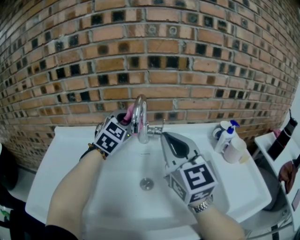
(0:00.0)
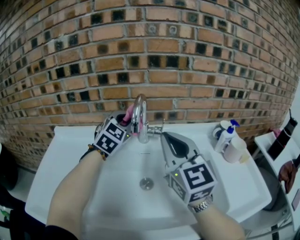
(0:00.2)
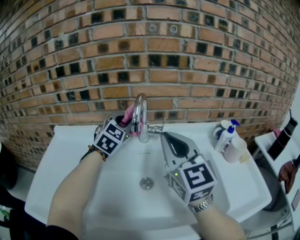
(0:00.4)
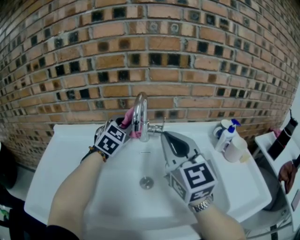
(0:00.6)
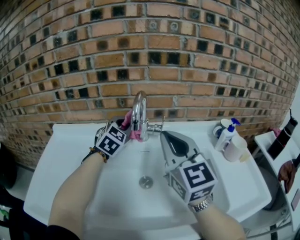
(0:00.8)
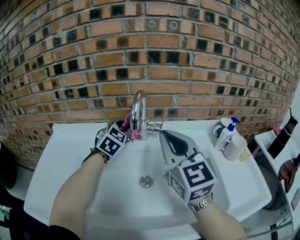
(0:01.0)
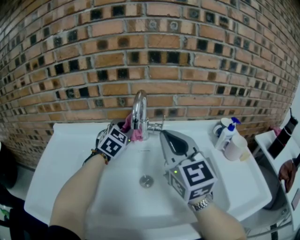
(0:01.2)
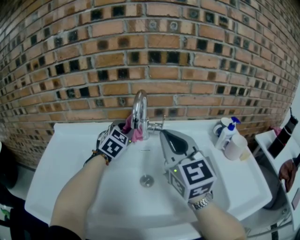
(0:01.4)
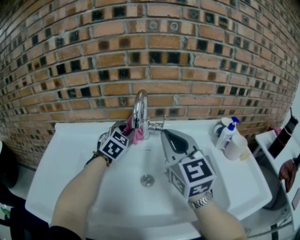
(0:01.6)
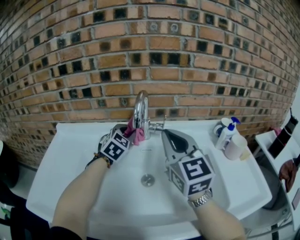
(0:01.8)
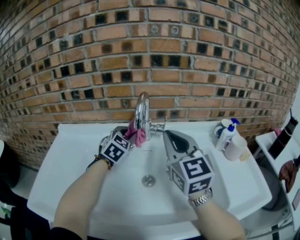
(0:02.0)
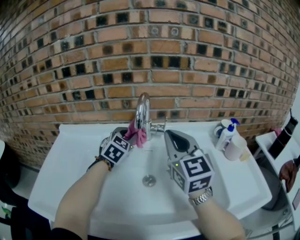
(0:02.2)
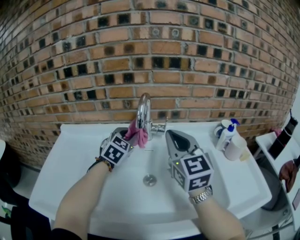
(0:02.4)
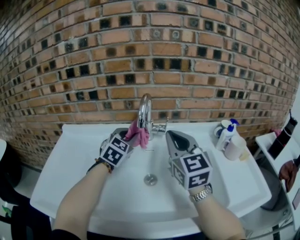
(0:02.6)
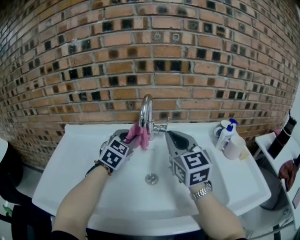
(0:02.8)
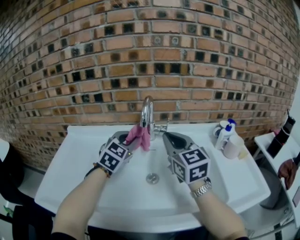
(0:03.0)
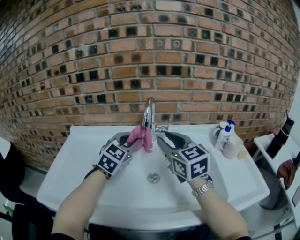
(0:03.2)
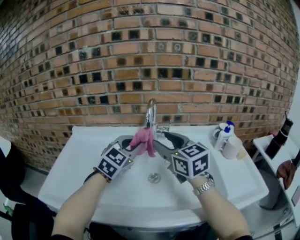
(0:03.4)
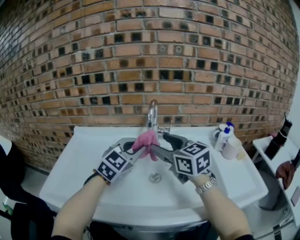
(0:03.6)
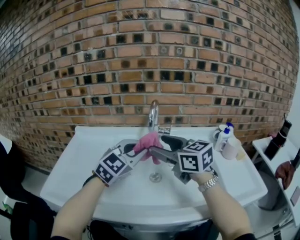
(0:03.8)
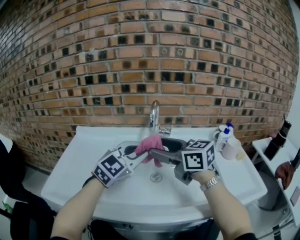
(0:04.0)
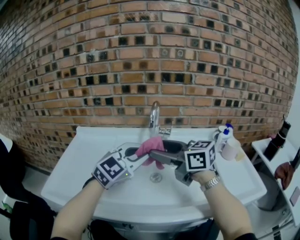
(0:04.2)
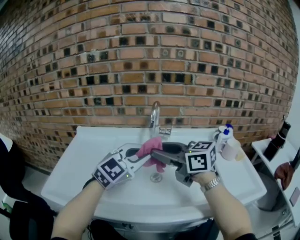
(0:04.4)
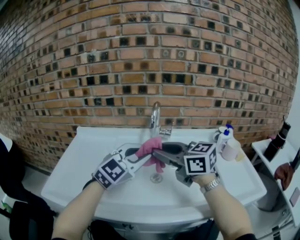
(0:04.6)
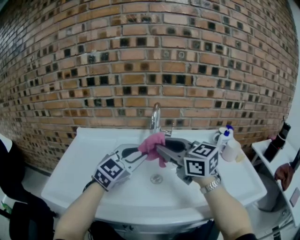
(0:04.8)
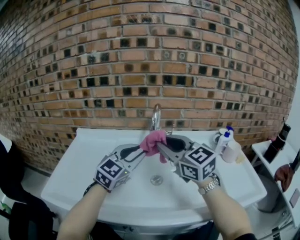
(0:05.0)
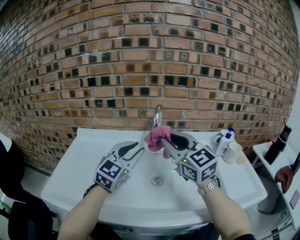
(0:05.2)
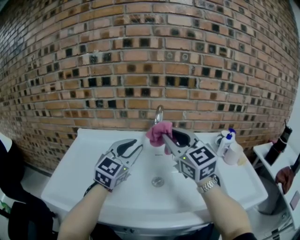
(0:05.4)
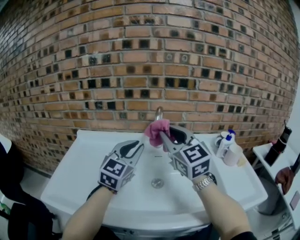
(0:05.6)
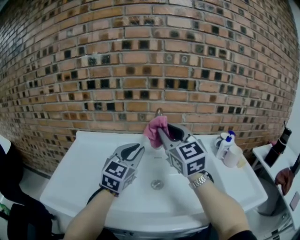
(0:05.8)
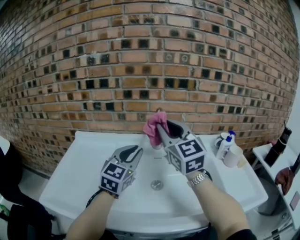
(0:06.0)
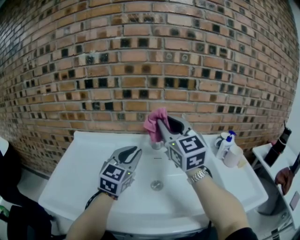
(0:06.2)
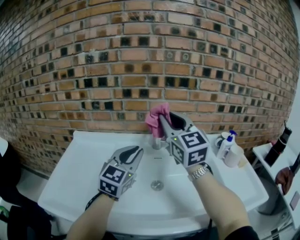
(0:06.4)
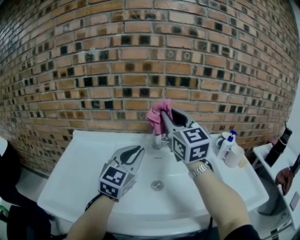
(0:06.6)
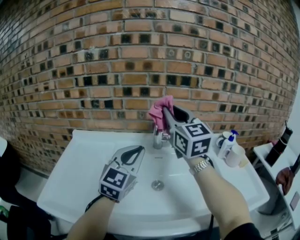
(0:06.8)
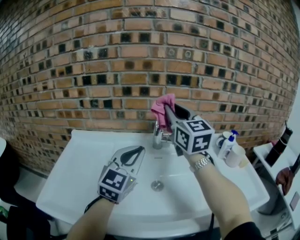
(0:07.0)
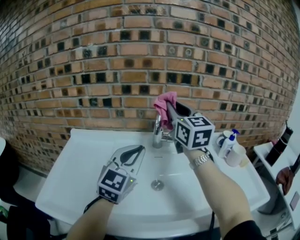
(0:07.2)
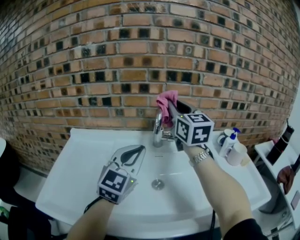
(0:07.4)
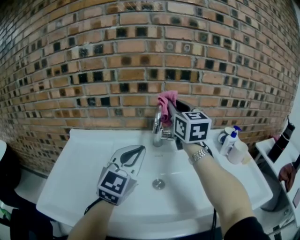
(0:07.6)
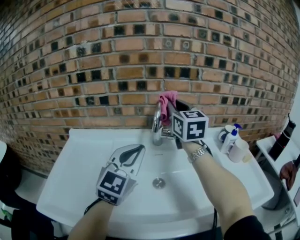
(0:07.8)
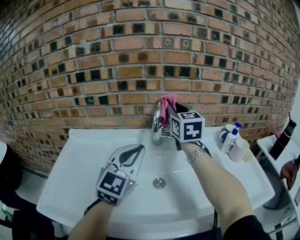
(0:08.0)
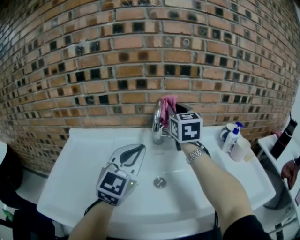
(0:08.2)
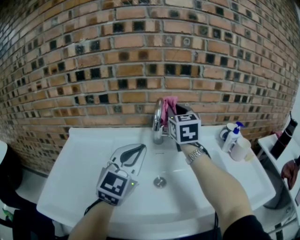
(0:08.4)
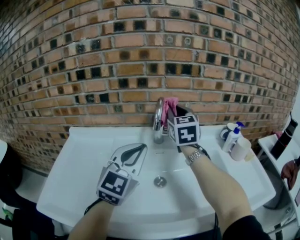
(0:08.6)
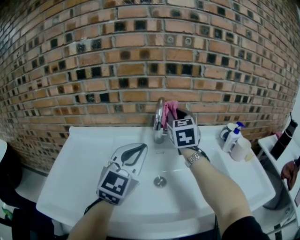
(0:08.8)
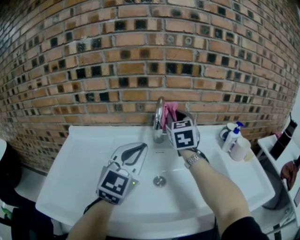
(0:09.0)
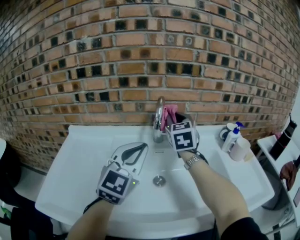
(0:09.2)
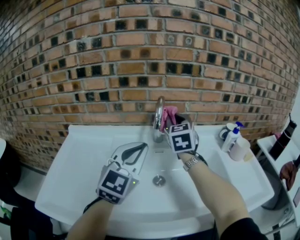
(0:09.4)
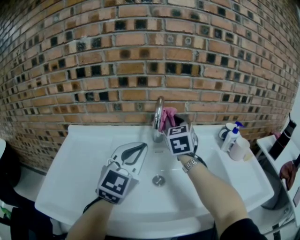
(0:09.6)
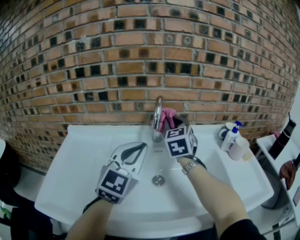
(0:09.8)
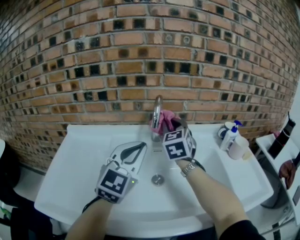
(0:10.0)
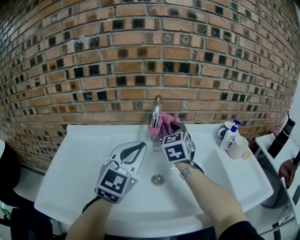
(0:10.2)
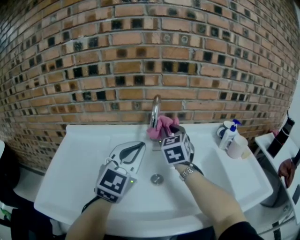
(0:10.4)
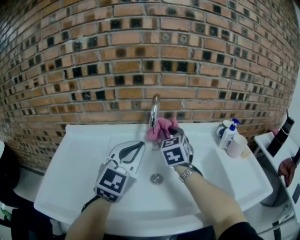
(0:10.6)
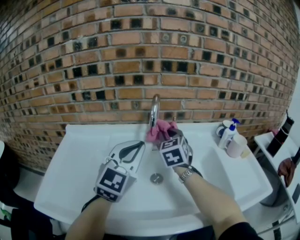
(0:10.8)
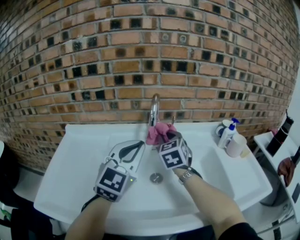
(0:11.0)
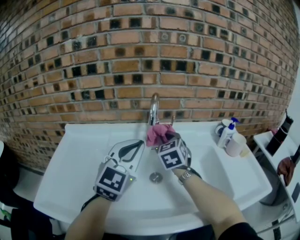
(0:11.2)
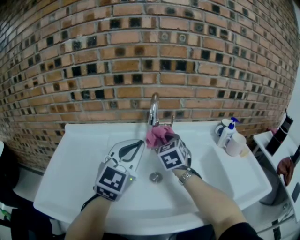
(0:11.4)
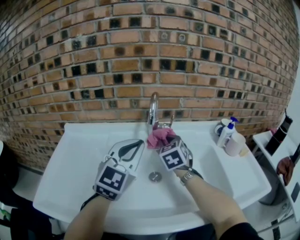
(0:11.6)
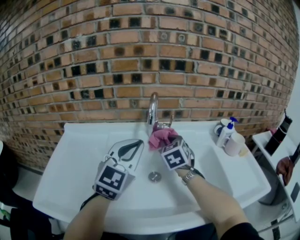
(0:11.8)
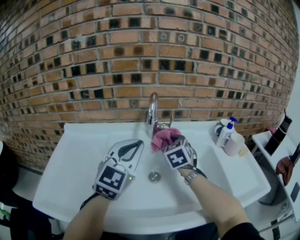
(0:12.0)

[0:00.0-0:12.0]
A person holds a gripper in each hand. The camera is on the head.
0:00.0 to 0:01.6: The left gripper shifts approximately 10 cm downward.
0:01.6 to 0:03.0: The left gripper shifts about 10 cm backward.
0:03.0 to 0:04.4: The right gripper moves backward and to the left, roughly 10 cm, rotates approximately 40 degrees, and opens. The left gripper is displaced backward by approximately 15 cm, and changes its angle by roughly 20 degrees.
0:04.4 to 0:06.0: The left gripper travels forward and to the left by approximately 10 cm, and swivels some 30 degrees. The right gripper is displaced upward and forward by some 10 cm, and rotates approximately 50 degrees.
0:06.0 to 0:07.6: The right gripper goes some 10 cm forward.
0:07.6 to 0:09.0: The right gripper travels downward by some 10 cm.
0:09.0 to 0:10.4: The right gripper heads downward, covering roughly 5 cm.
0:10.4 to 0:12.0: The right gripper goes roughly 5 cm downward.

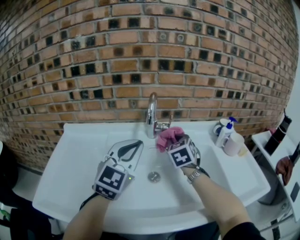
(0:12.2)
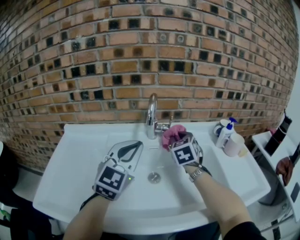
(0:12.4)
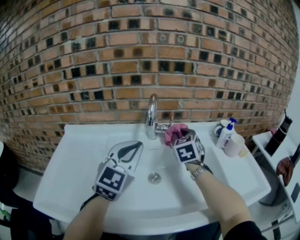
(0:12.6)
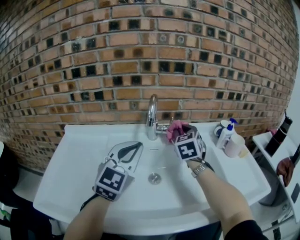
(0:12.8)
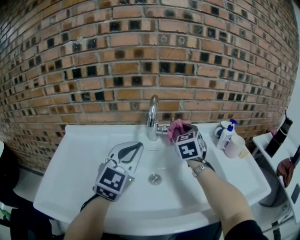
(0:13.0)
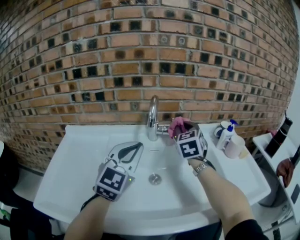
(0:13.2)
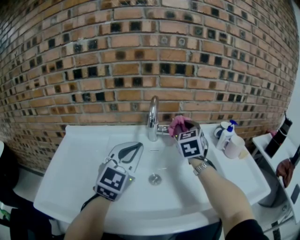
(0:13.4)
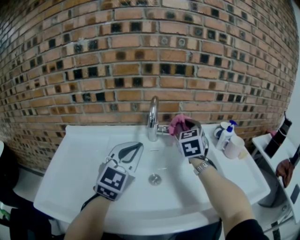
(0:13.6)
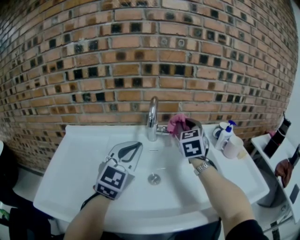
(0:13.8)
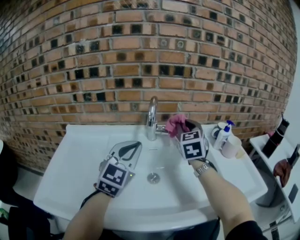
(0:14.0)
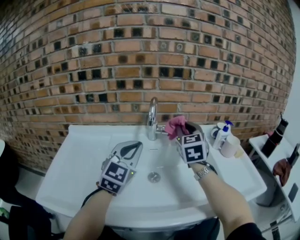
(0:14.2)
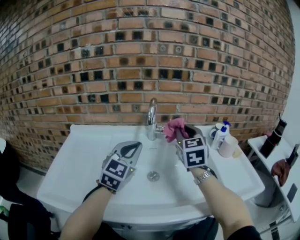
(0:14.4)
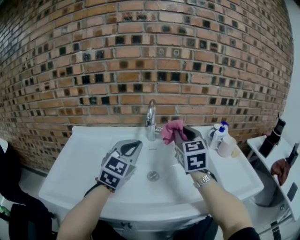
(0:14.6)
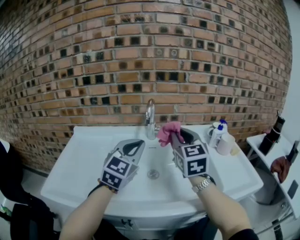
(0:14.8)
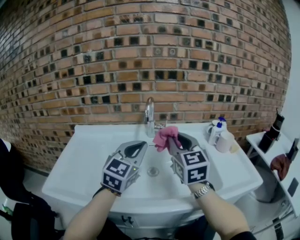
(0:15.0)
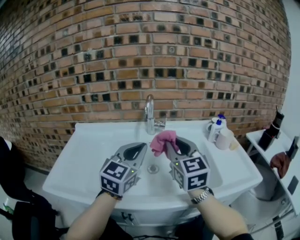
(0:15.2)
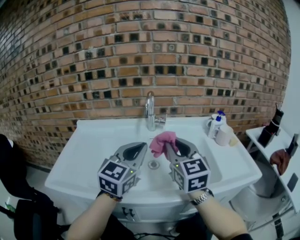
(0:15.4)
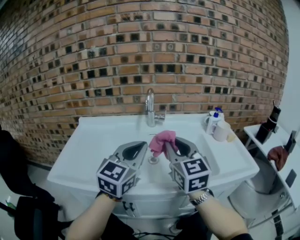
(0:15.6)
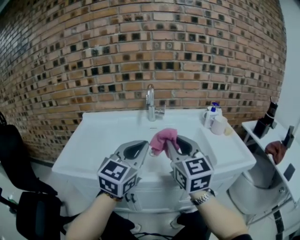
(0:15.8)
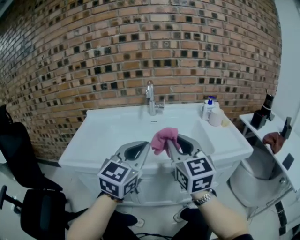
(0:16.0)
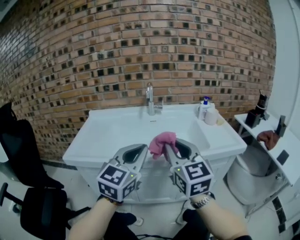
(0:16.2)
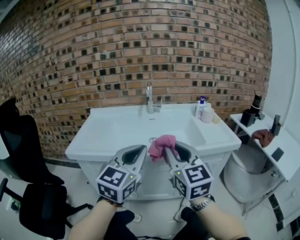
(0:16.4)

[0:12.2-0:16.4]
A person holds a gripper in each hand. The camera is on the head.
0:12.2 to 0:13.6: The right gripper shifts about 10 cm upward.
0:13.6 to 0:15.0: The left gripper changes place by about 5 cm, while the right gripper goes approximately 20 cm backward, and rotates about 20 degrees.
0:15.0 to 0:16.4: The two grippers go some 30 cm backward.

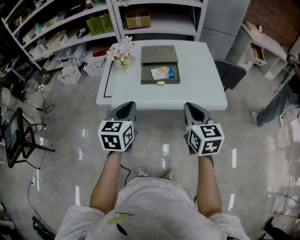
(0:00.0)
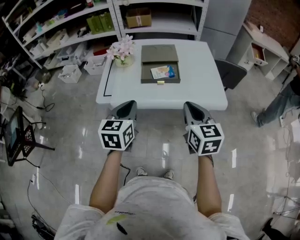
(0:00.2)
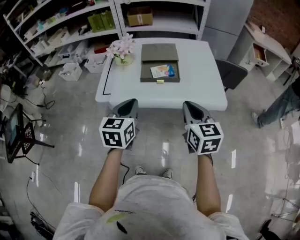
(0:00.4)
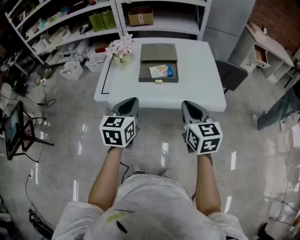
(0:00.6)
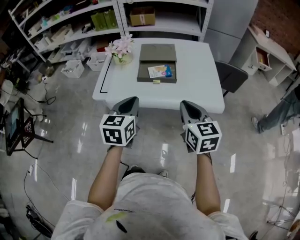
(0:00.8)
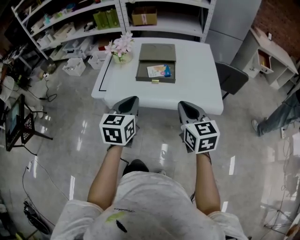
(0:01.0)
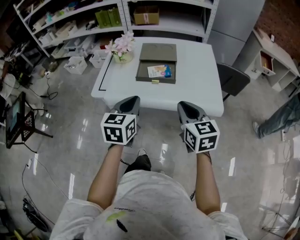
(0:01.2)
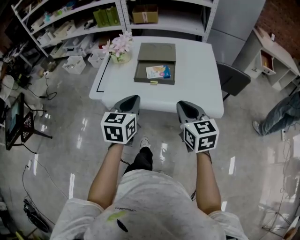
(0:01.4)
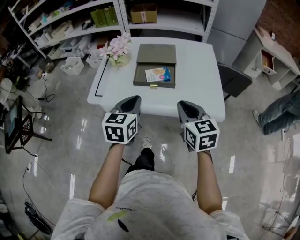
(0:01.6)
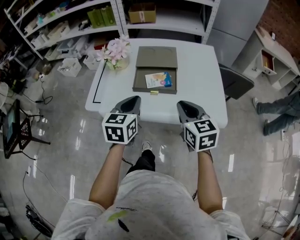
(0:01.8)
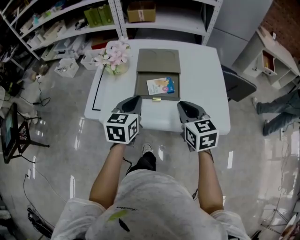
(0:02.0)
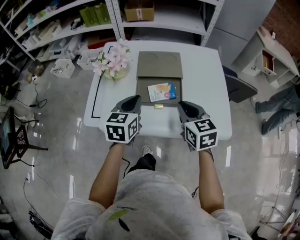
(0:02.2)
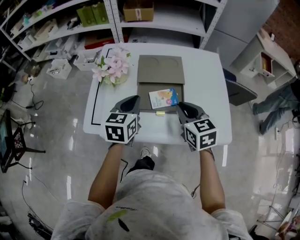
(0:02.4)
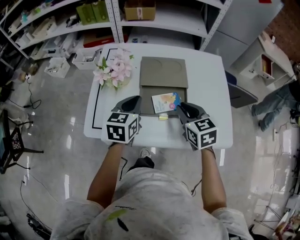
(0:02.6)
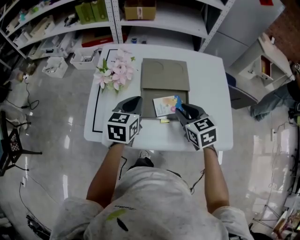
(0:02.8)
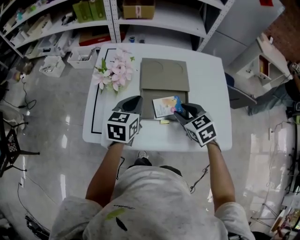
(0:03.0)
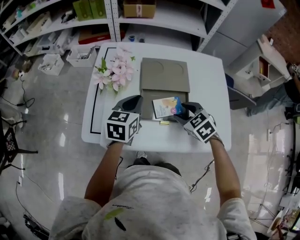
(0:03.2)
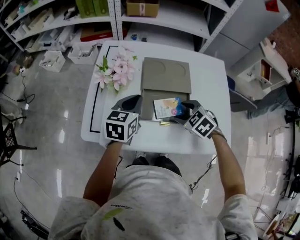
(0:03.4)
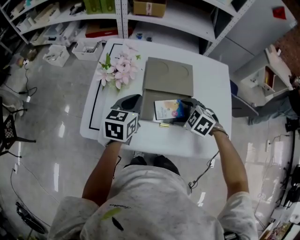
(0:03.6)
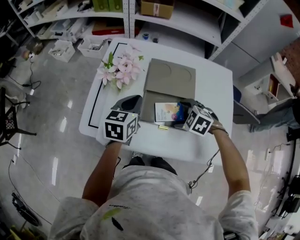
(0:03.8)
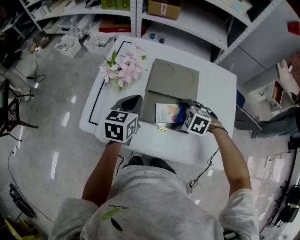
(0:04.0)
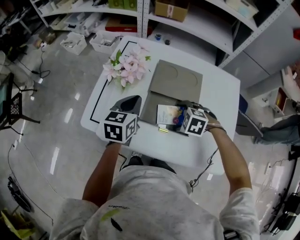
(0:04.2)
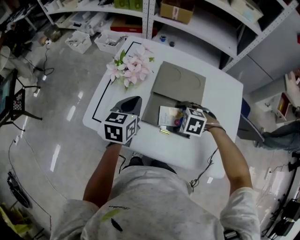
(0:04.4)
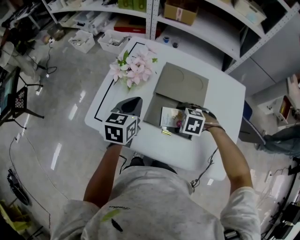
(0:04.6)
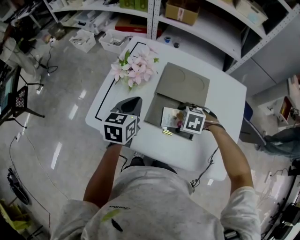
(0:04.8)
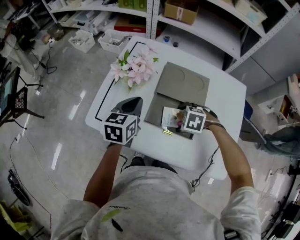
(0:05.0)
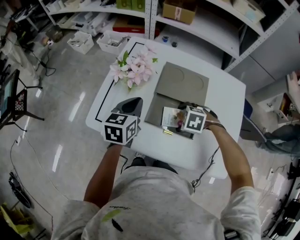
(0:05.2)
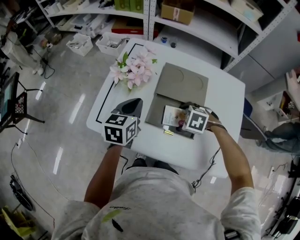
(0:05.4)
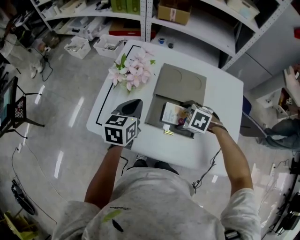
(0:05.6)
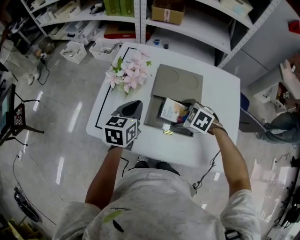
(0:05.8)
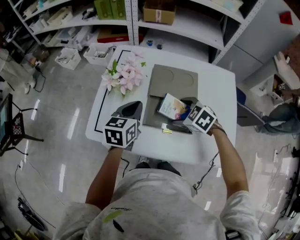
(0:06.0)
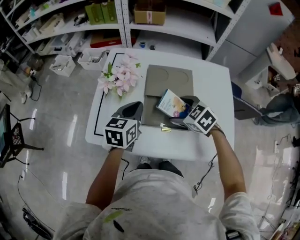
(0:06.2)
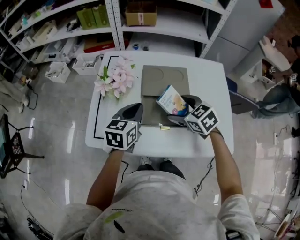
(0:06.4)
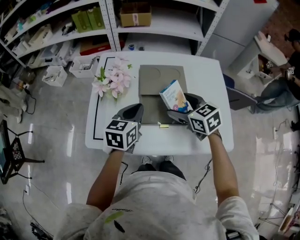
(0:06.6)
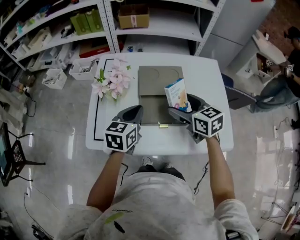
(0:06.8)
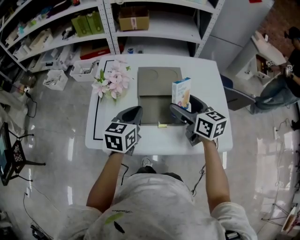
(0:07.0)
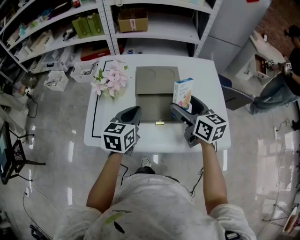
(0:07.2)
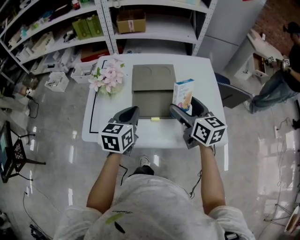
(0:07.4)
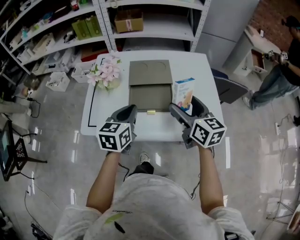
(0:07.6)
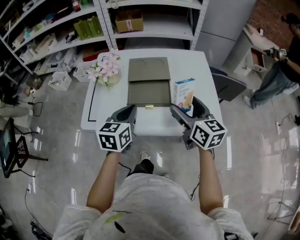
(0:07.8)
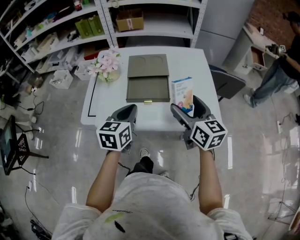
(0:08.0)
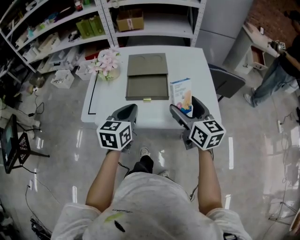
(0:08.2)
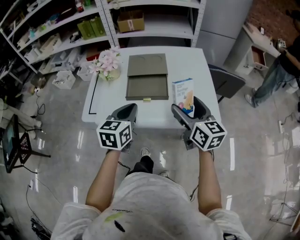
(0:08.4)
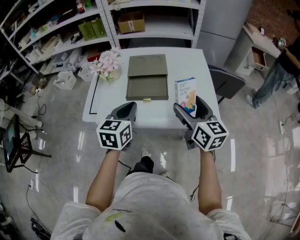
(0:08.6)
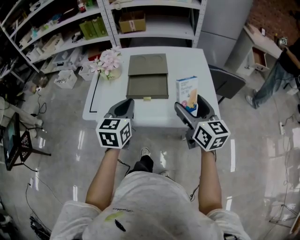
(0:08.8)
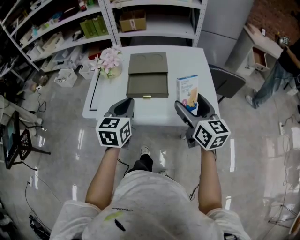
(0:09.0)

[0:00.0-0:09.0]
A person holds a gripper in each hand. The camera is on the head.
0:00.0 to 0:01.6: The left gripper travels to the right and forward by about 10 cm, while the right gripper moves forward, approximately 5 cm.
0:01.6 to 0:03.0: Both grippers move forward, about 25 cm. The right gripper rotates about 30 degrees.
0:03.0 to 0:04.4: The right gripper is displaced downward by some 10 cm, swivels about 60 degrees, and opens its fingers.
0:04.4 to 0:06.0: The right gripper heads upward, covering about 5 cm, and changes its angle by roughly 30 degrees.
0:06.0 to 0:07.6: The right gripper is displaced upward, backward and to the right by approximately 20 cm, and angles its fingers upward, by roughly 50 degrees. Meanwhile the left gripper shifts approximately 15 cm backward and to the right.
0:07.6 to 0:09.0: The left gripper heads backward, covering roughly 10 cm. The right gripper moves backward and to the right, about 10 cm.
